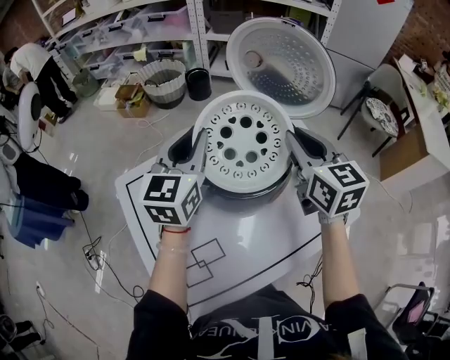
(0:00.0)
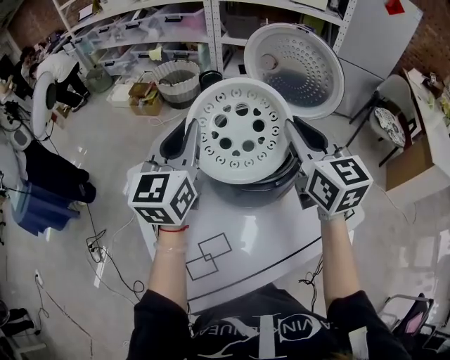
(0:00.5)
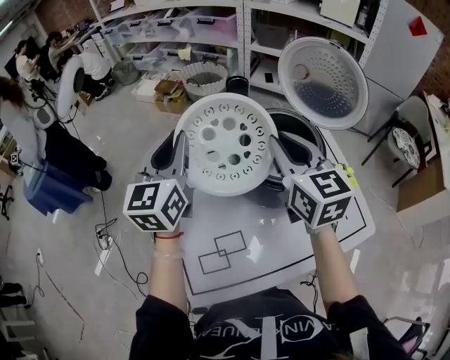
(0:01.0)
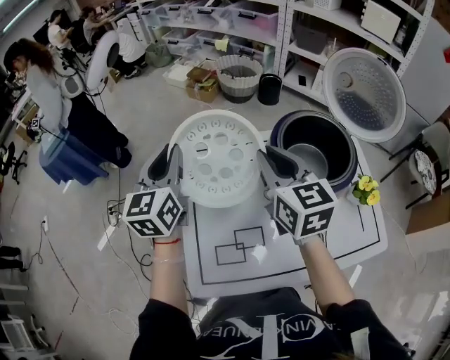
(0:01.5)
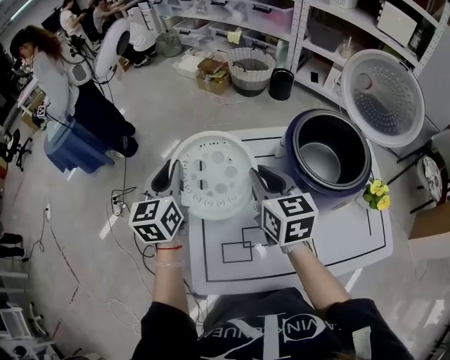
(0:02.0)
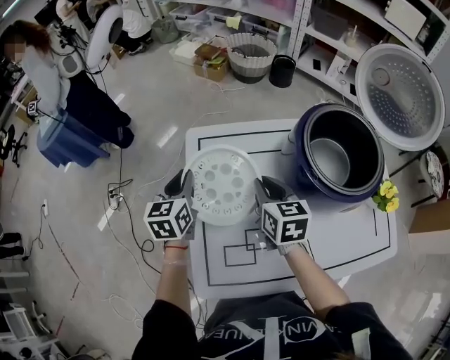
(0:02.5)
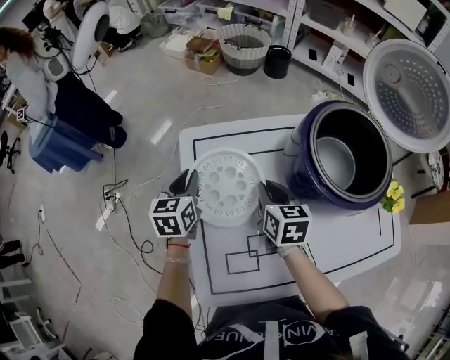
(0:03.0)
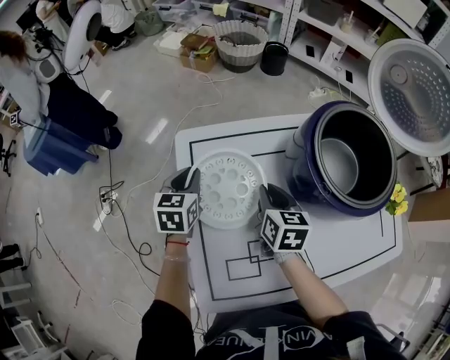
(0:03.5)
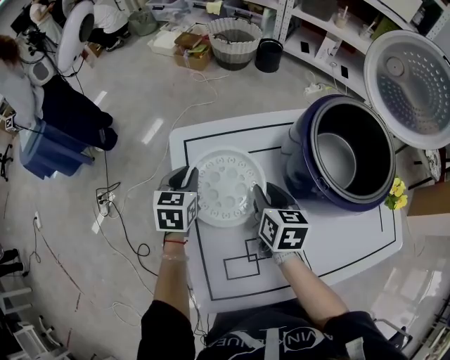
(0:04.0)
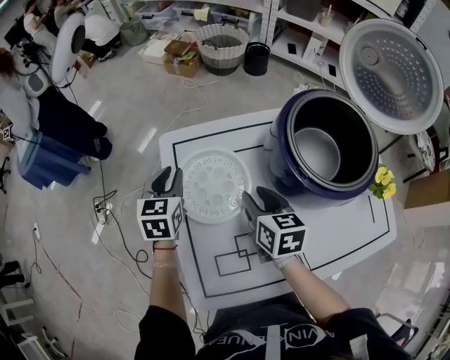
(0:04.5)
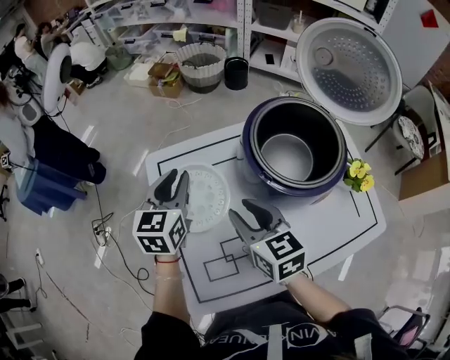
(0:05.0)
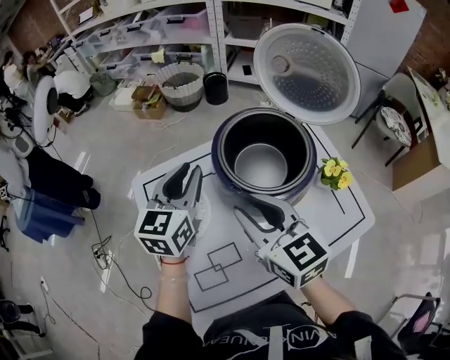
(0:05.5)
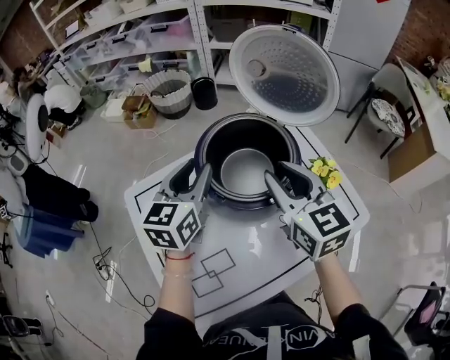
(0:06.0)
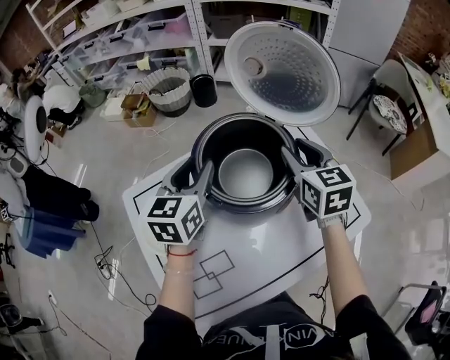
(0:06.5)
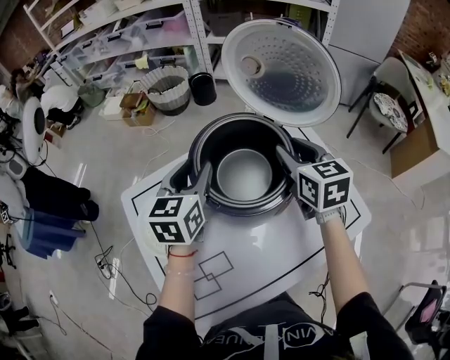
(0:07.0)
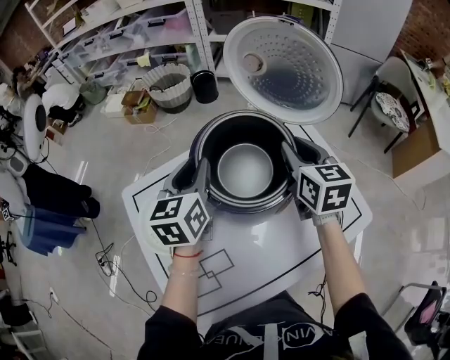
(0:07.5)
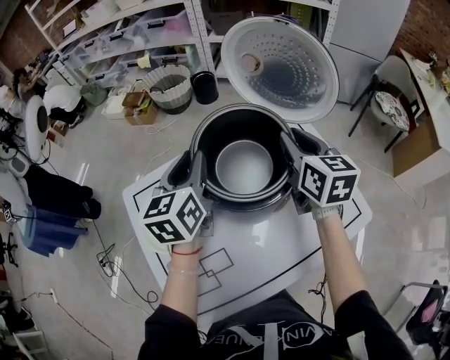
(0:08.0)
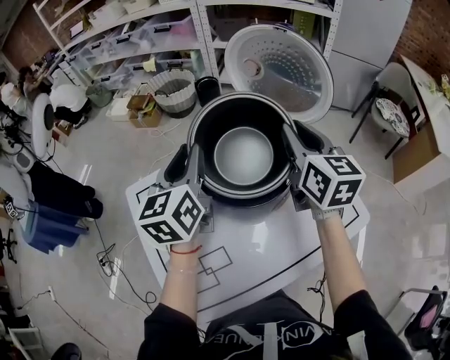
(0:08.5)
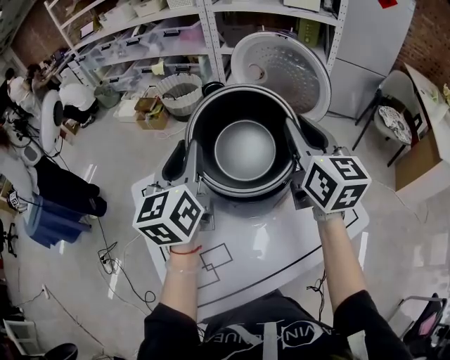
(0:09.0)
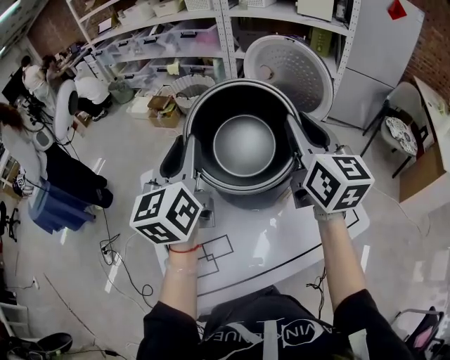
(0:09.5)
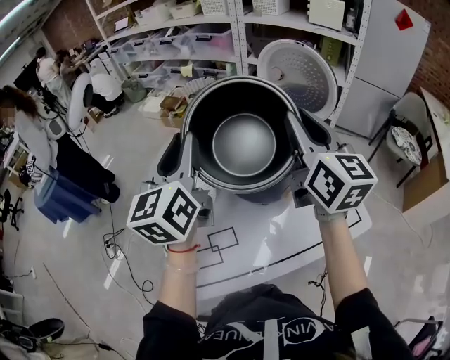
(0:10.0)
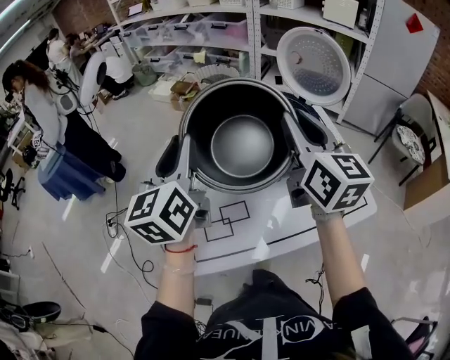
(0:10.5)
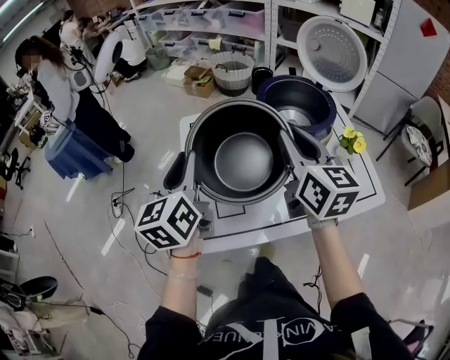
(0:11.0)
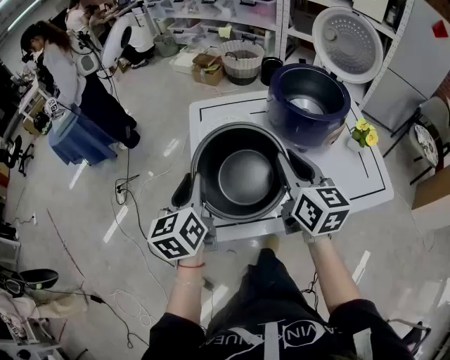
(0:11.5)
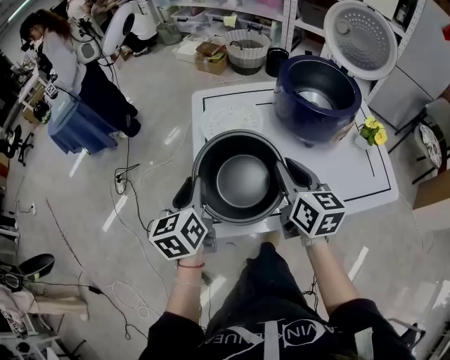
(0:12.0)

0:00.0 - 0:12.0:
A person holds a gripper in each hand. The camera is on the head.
0:00.0 - 0:02.0: The right gripper moves some 30 cm, and changes its angle by roughly 30 degrees. The left gripper moves roughly 35 cm, and swivels roughly 40 degrees.
0:02.0 - 0:04.0: The grippers both shift downward by roughly 20 cm. The left gripper turns by roughly 30 degrees. The right gripper turns by approximately 30 degrees.
0:04.0 - 0:06.0: The right gripper is displaced upward and to the right by roughly 30 cm, and changes its angle by about 30 degrees, while the left gripper shifts approximately 35 cm to the right and upward, and changes its angle by about 30 degrees.
0:06.0 - 0:08.0: The right gripper goes about 10 cm forward and to the right.
0:08.0 - 0:10.0: The left gripper travels upward, backward and to the left by some 20 cm, and turns by roughly 20 degrees; the right gripper heads upward and backward, covering some 20 cm, and rotates about 20 degrees.
0:10.0 - 0:12.0: Both grippers move downward, to the left and backward, some 35 cm. The right gripper rotates some 30 degrees, while the left gripper rotates approximately 30 degrees.

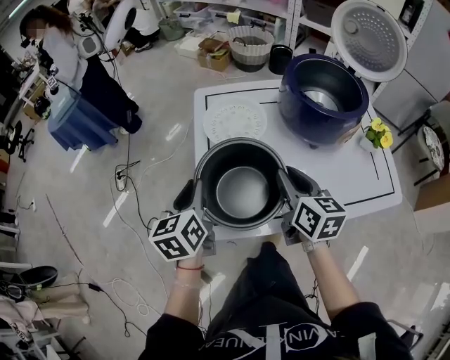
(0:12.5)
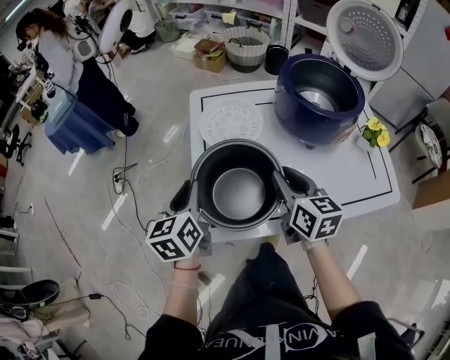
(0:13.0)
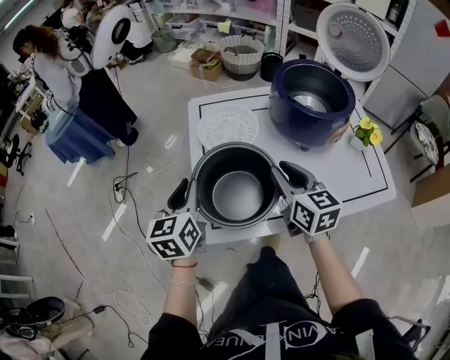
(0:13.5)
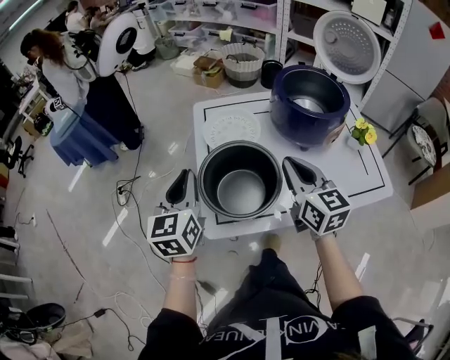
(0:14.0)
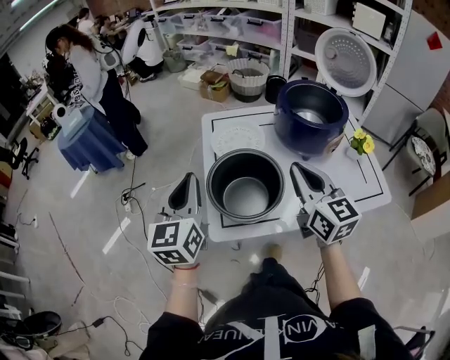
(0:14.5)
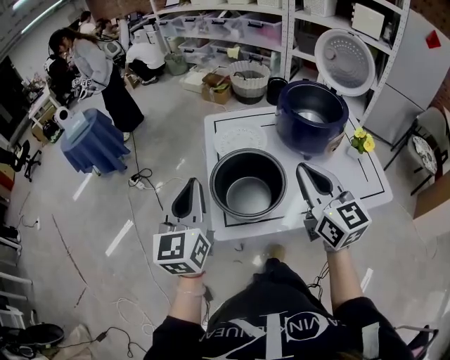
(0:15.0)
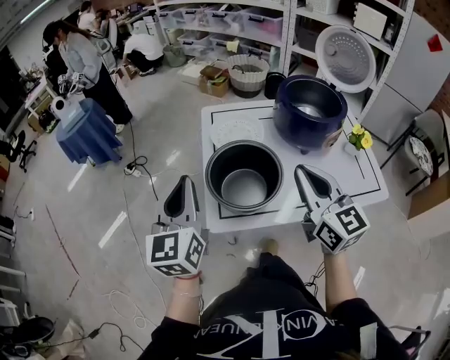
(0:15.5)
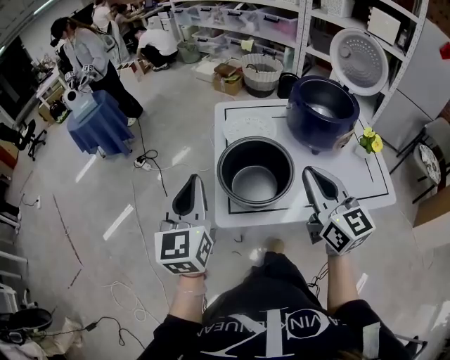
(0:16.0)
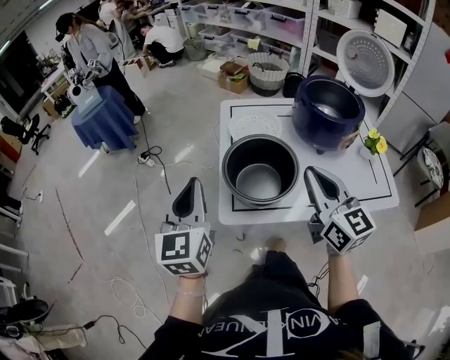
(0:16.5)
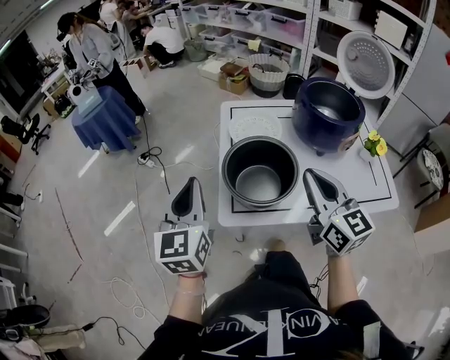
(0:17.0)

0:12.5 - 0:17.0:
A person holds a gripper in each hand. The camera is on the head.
0:12.5 - 0:14.5: The two grippers go roughly 15 cm upward. The left gripper changes its angle by about 30 degrees, while the right gripper swivels approximately 20 degrees.
0:14.5 - 0:17.0: Both grippers travel together backward, about 5 cm.

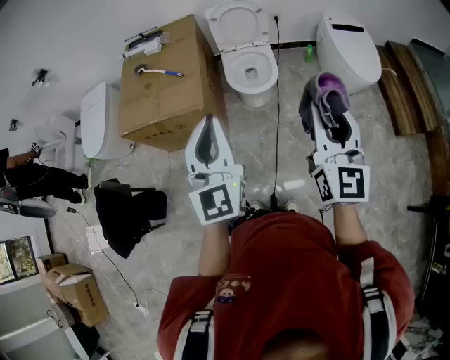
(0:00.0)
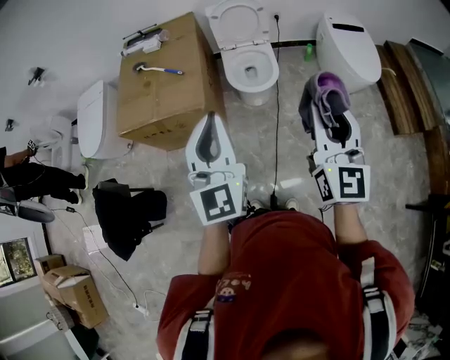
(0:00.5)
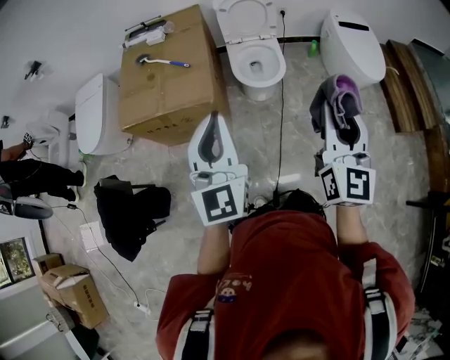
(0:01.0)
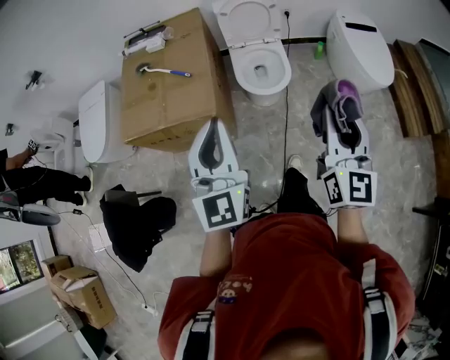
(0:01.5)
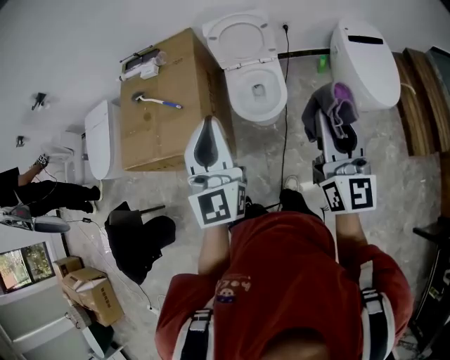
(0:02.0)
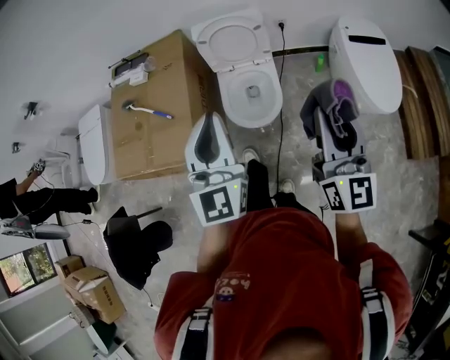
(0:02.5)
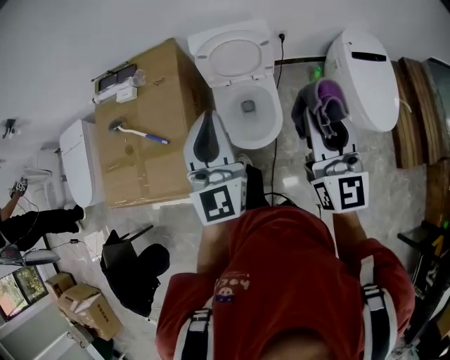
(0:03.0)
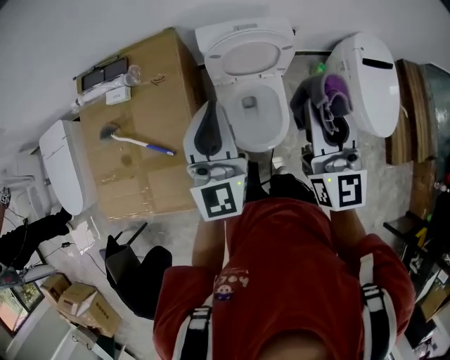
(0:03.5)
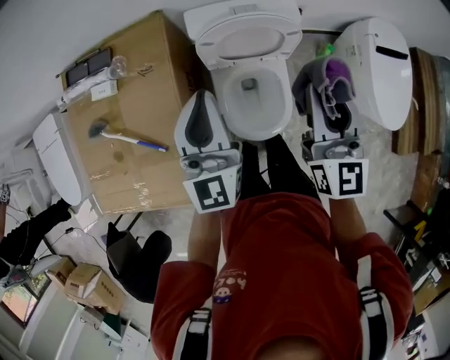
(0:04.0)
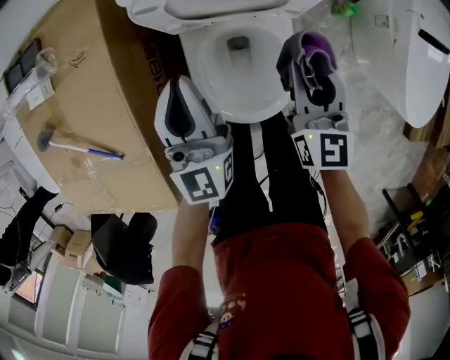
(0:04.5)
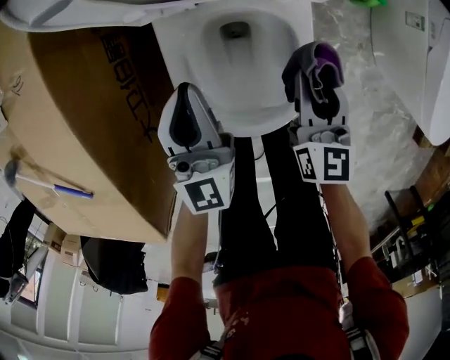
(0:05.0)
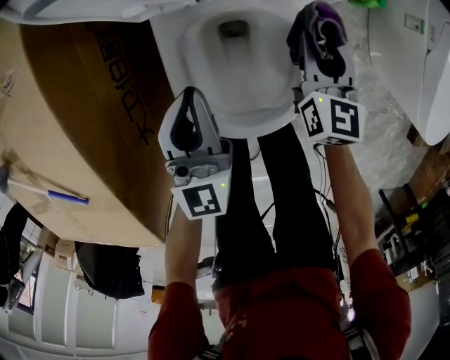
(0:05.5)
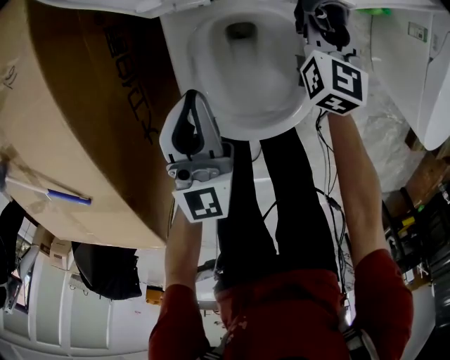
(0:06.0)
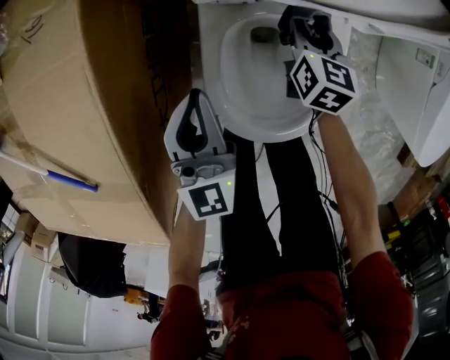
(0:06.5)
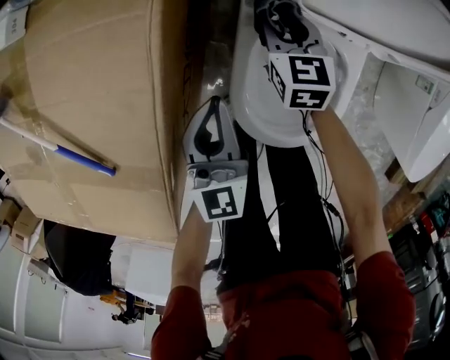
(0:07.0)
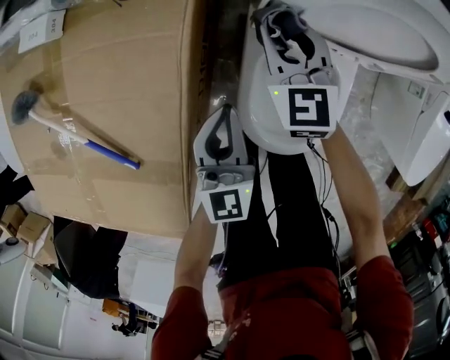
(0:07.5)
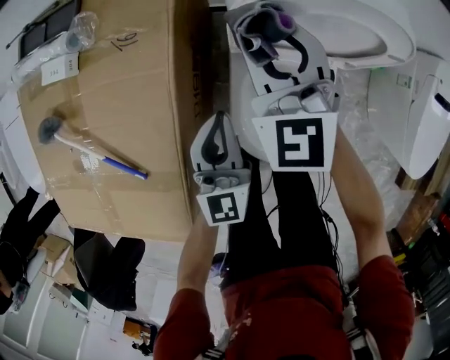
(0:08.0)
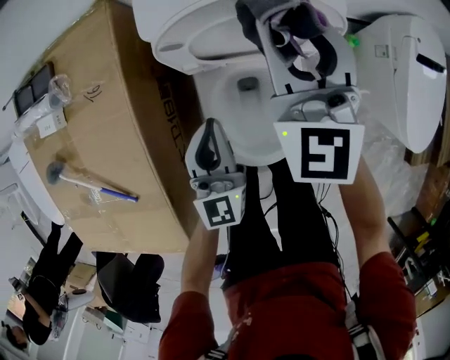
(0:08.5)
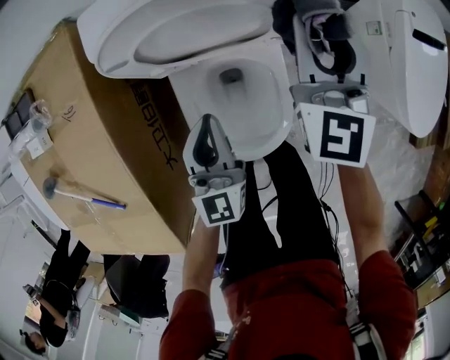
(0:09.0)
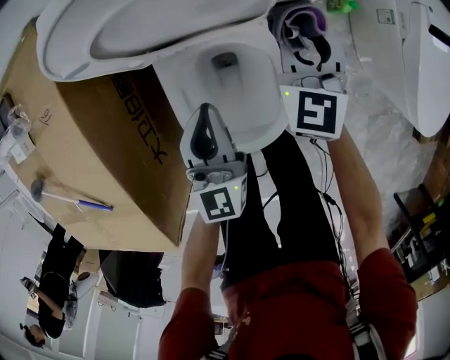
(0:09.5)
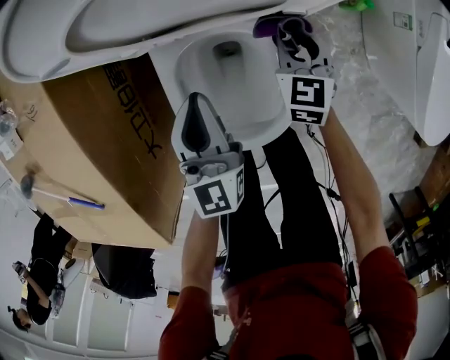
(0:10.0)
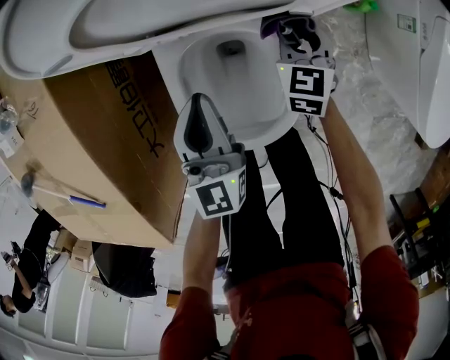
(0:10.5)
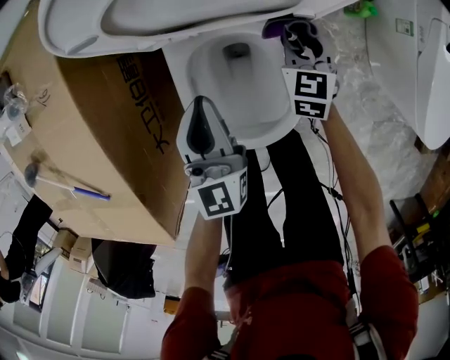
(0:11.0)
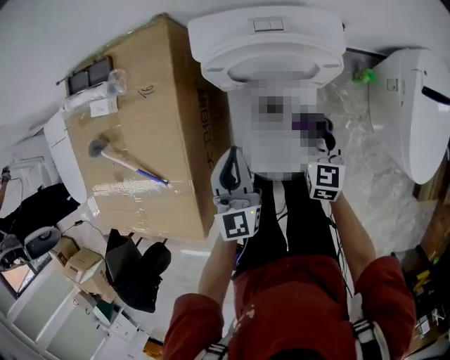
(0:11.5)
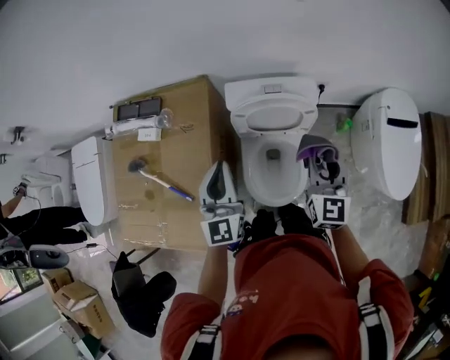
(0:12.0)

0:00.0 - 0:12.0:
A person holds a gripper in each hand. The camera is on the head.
0:00.0 - 0:02.0: Both grippers move forward, roughly 25 cm.
0:02.0 - 0:04.0: The pair of grippers is taken forward, roughly 50 cm.
0:04.0 - 0:06.0: Both grippers travel together downward, about 50 cm. The right gripper changes its angle by approximately 30 degrees.
0:06.0 - 0:08.0: The left gripper shifts about 15 cm upward and to the left. Meanwhile the right gripper travels upward and to the left by approximately 35 cm, and changes its angle by roughly 40 degrees.
0:08.0 - 0:10.0: The right gripper goes approximately 40 cm to the right and downward, and changes its angle by some 40 degrees. The left gripper heads to the right and downward, covering about 20 cm.
0:10.0 - 0:12.0: Both grippers move upward, approximately 40 cm. The right gripper swivels some 30 degrees.
